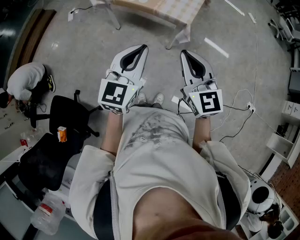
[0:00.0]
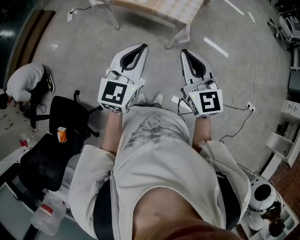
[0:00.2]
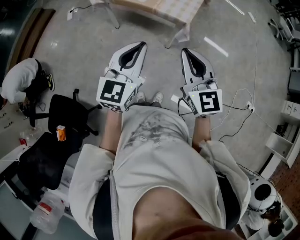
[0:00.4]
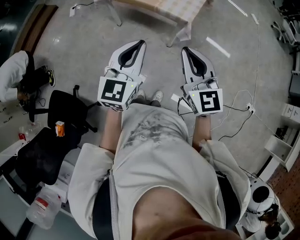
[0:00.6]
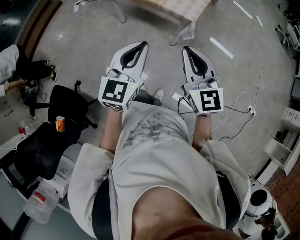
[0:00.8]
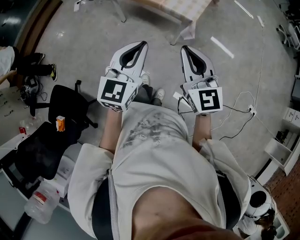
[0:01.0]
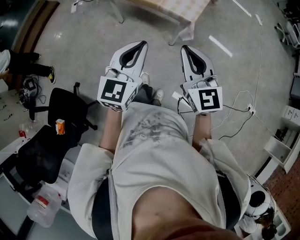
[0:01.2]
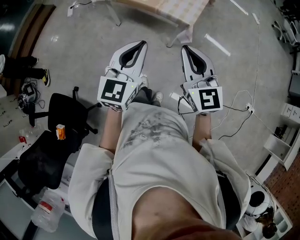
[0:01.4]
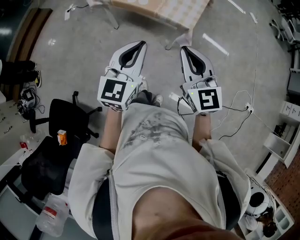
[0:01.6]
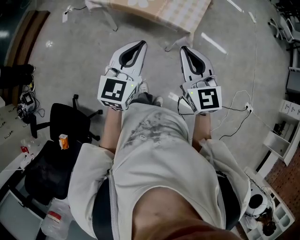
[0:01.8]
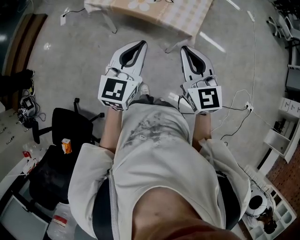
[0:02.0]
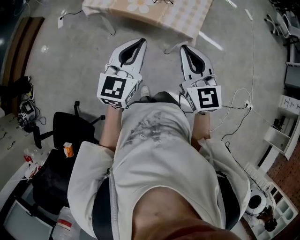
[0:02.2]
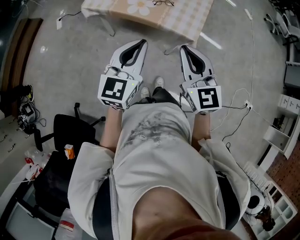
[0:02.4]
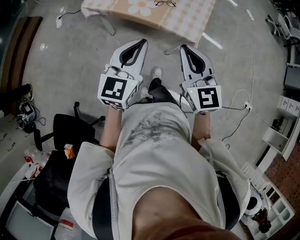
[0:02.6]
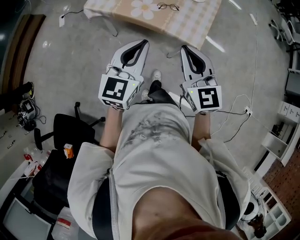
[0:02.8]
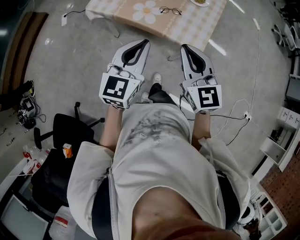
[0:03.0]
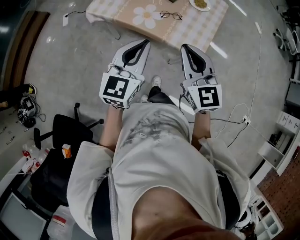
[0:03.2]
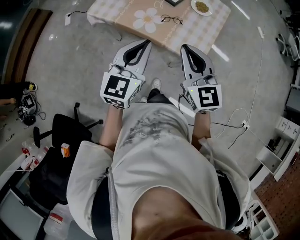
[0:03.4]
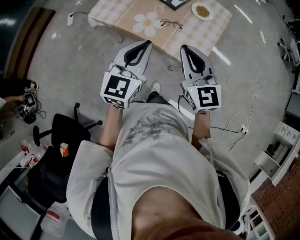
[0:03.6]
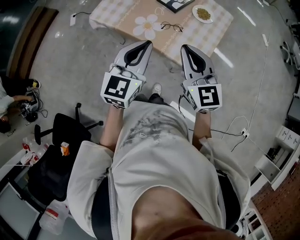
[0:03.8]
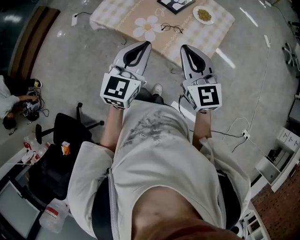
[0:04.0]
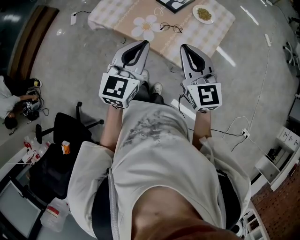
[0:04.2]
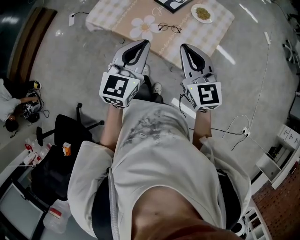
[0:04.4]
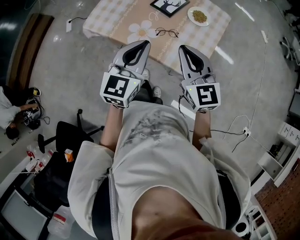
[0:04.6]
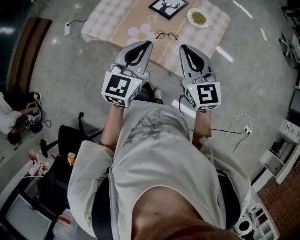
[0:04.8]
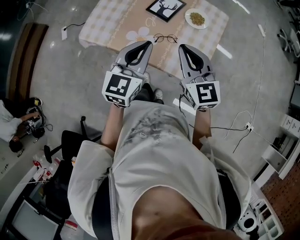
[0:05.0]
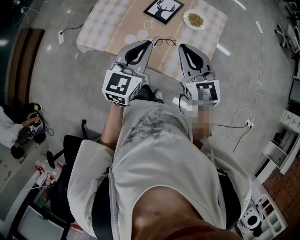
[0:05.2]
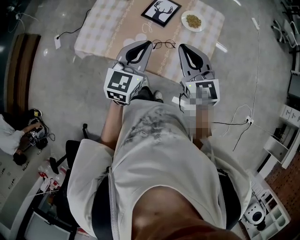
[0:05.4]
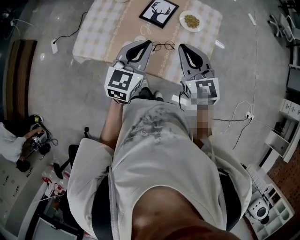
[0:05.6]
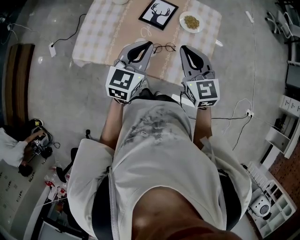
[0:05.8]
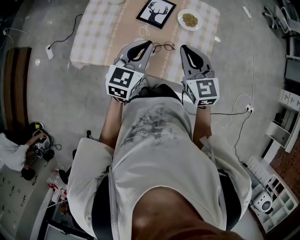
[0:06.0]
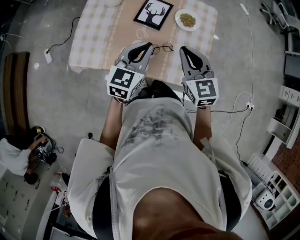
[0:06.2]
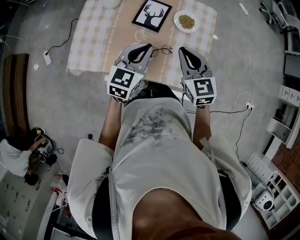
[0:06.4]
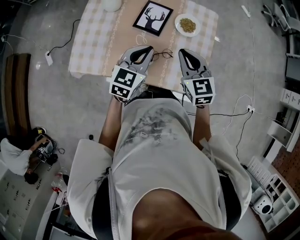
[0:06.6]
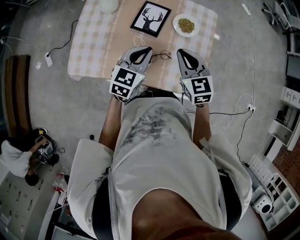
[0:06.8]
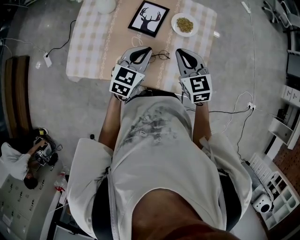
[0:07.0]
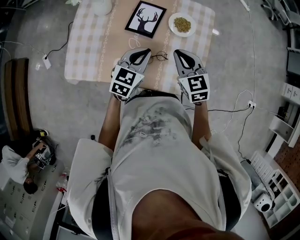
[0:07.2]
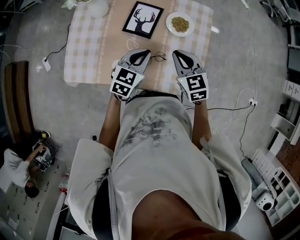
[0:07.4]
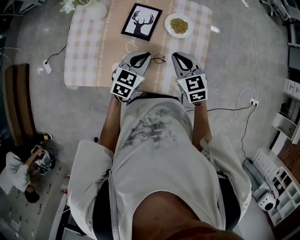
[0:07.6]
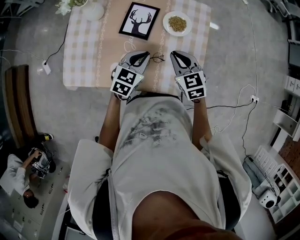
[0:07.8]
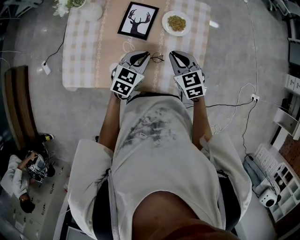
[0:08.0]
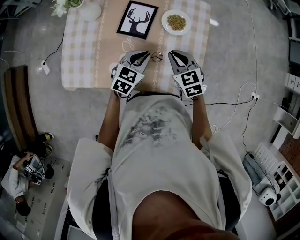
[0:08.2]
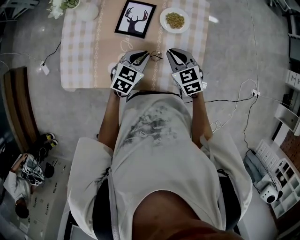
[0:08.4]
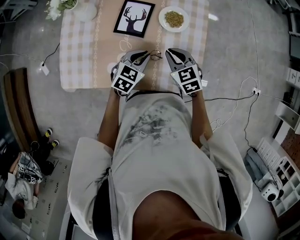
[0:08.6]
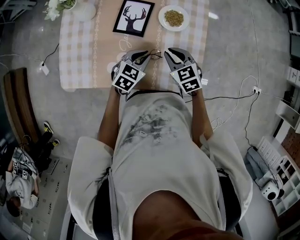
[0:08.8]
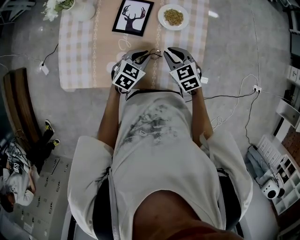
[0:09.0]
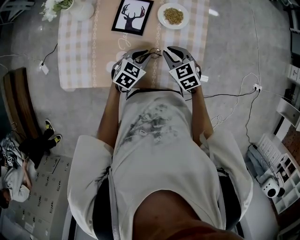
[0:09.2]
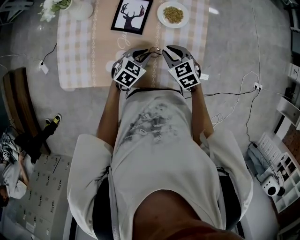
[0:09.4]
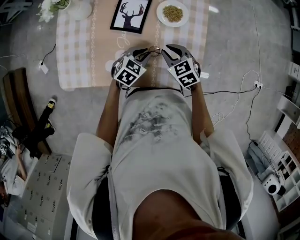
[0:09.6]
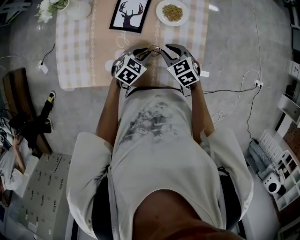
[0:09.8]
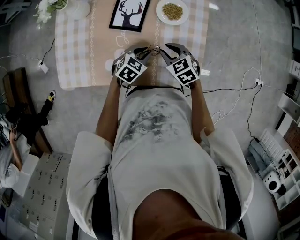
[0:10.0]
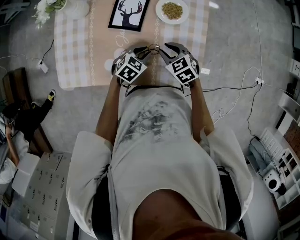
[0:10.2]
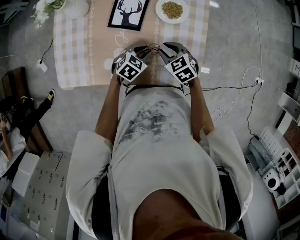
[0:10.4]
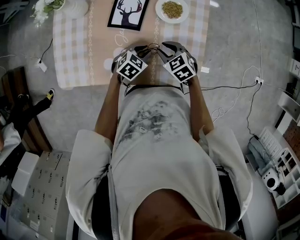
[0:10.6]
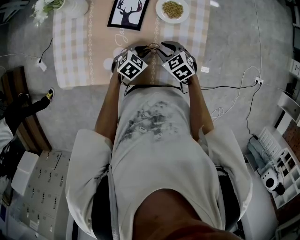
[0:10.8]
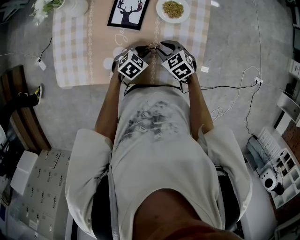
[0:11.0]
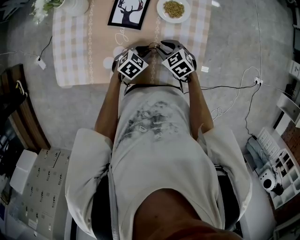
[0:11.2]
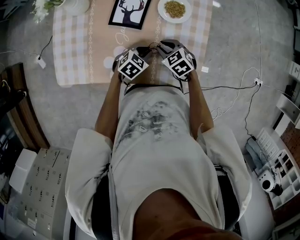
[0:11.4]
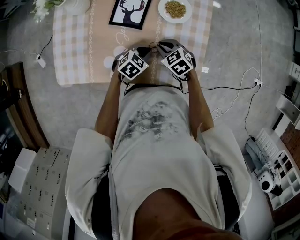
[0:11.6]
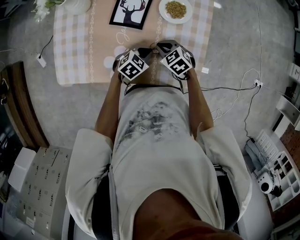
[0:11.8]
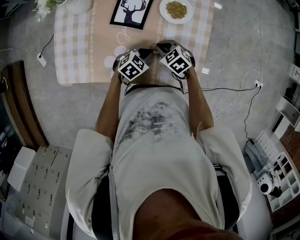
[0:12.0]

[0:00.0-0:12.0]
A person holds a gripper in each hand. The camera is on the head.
0:00.0 to 0:01.6: Both grippers move forward, approximately 5 cm.
0:01.6 to 0:03.0: The grippers both shift forward by roughly 20 cm.
0:03.0 to 0:04.4: The two grippers go roughly 15 cm forward.
0:04.4 to 0:06.0: Both grippers travel together forward, approximately 15 cm. The left gripper changes its angle by about 20 degrees.
0:06.0 to 0:07.6: The right gripper shifts about 15 cm downward and forward; the left gripper moves downward, forward and to the right, about 15 cm, and turns by about 20 degrees.
0:07.6 to 0:09.0: Both grippers travel together downward, roughly 10 cm.
0:09.0 to 0:10.4: The left gripper goes approximately 5 cm downward.
0:10.4 to 0:12.0: The right gripper ends up about 5 cm from where it was, and closes up.

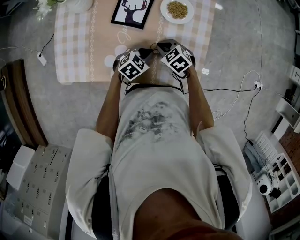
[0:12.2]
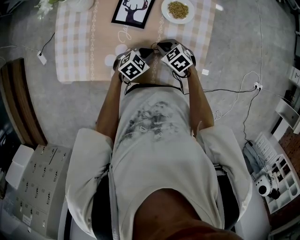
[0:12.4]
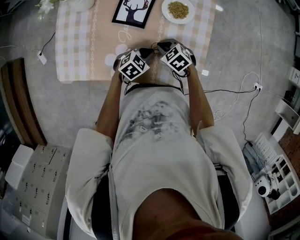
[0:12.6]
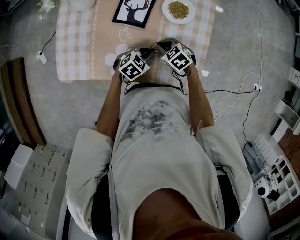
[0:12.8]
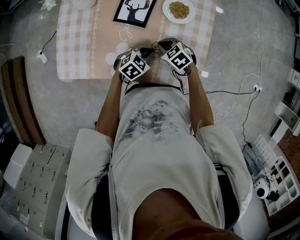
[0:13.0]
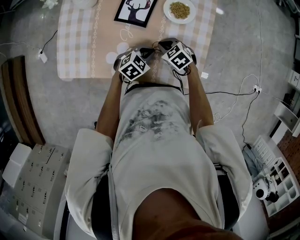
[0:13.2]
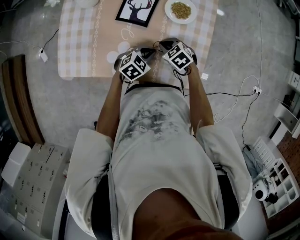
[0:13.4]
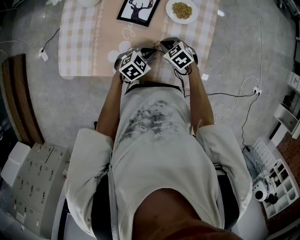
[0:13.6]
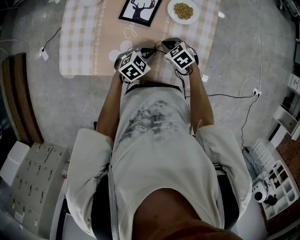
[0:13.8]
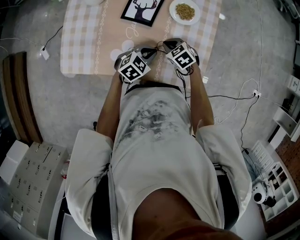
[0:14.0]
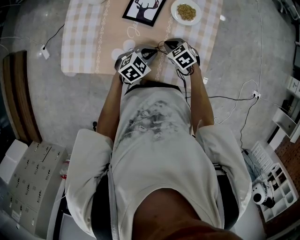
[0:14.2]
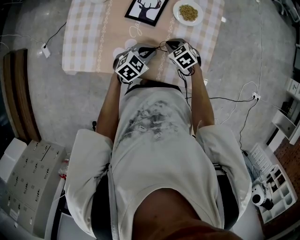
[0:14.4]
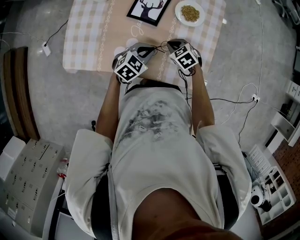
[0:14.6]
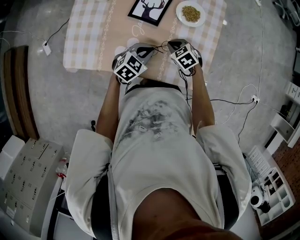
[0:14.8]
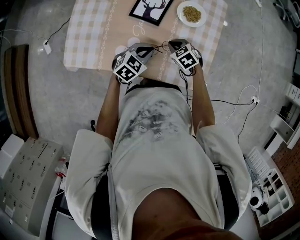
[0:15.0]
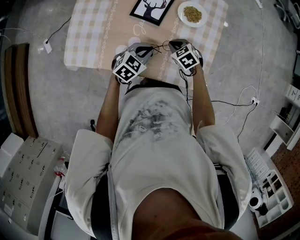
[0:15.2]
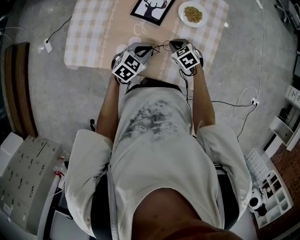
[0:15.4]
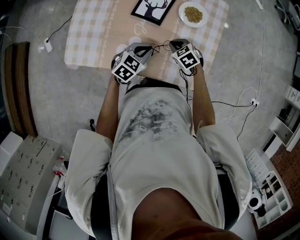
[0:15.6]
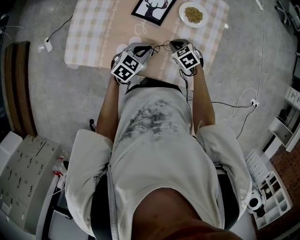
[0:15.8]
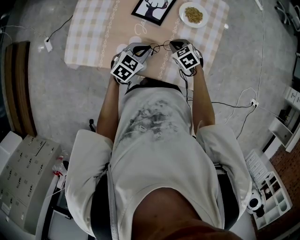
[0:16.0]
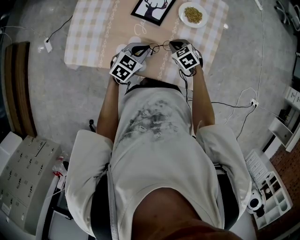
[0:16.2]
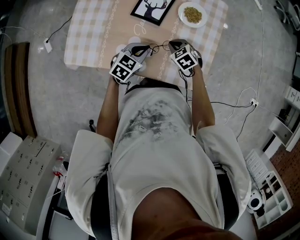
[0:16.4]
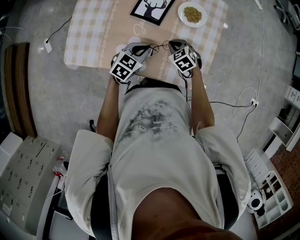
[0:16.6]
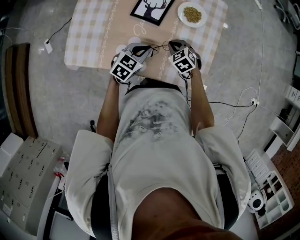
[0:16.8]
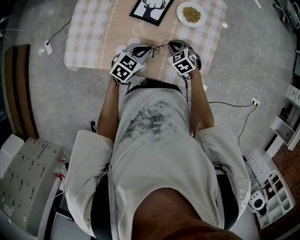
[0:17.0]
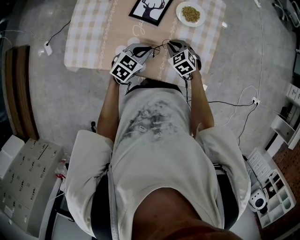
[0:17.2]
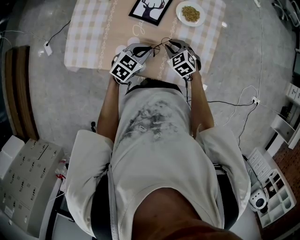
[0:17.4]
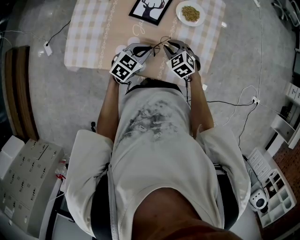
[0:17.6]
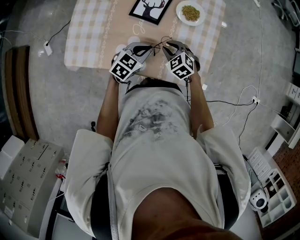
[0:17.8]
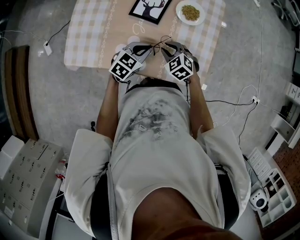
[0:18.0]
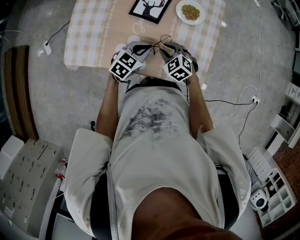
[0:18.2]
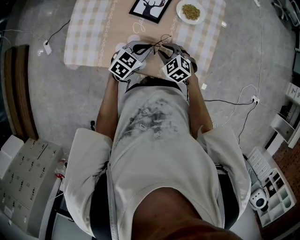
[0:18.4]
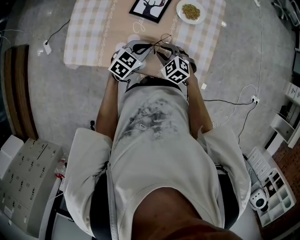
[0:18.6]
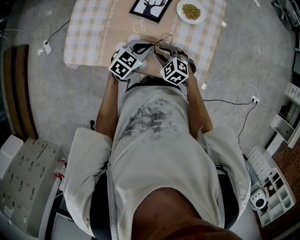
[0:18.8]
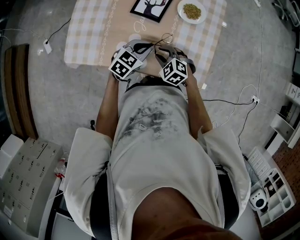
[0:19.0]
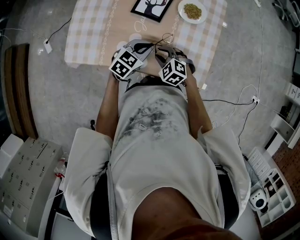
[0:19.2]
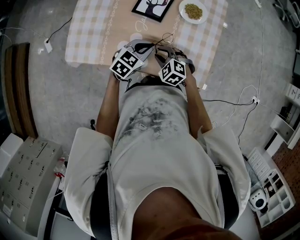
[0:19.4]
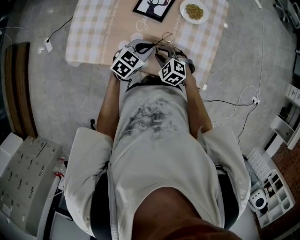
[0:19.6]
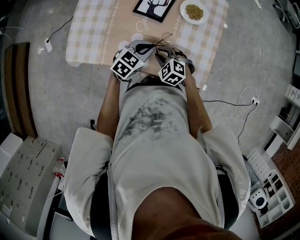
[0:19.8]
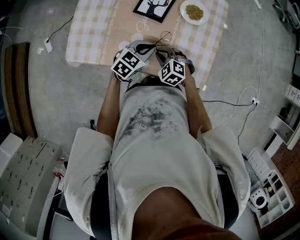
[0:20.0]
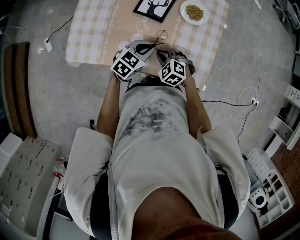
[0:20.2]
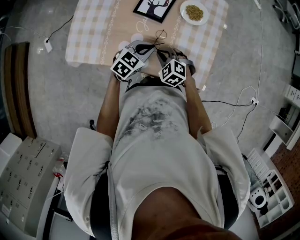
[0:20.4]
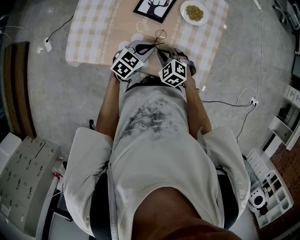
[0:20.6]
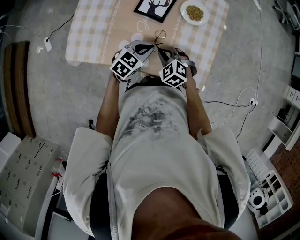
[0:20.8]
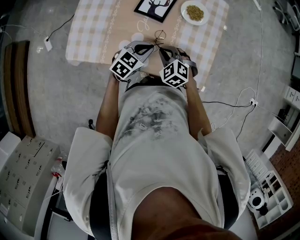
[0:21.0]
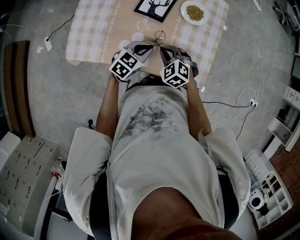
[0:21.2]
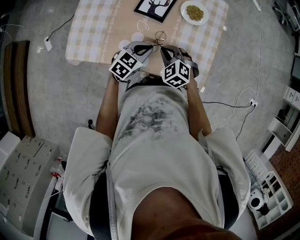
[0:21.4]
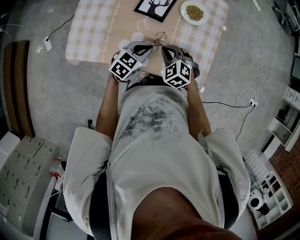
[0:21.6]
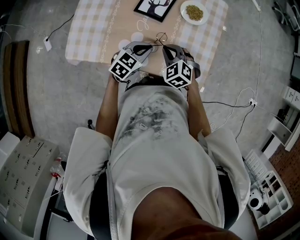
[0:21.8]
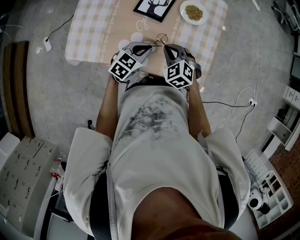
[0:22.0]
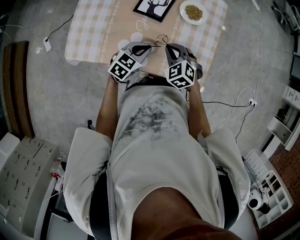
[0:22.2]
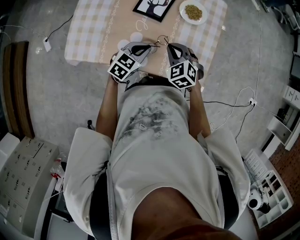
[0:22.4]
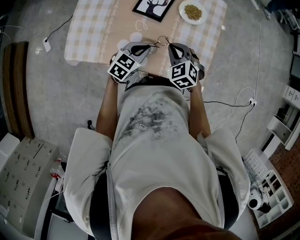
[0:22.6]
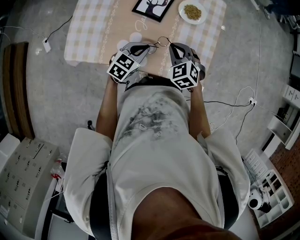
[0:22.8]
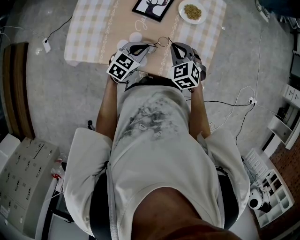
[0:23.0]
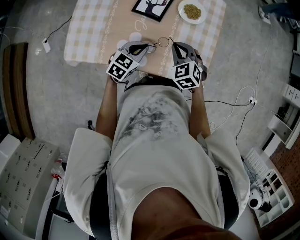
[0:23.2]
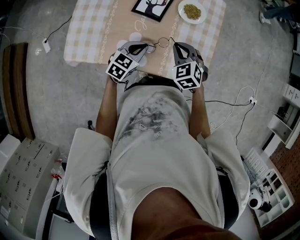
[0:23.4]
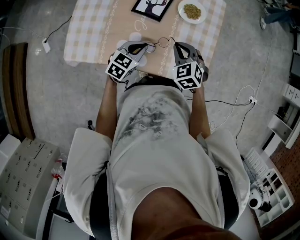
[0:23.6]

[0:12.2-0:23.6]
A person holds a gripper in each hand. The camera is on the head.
0:12.2 to 0:13.6: There are only small adjustments of the grippers.
0:13.6 to 0:15.0: The left gripper ends up approximately 5 cm from where it was.
0:15.0 to 0:17.8: The grippers stay close to where they were, moving slightly.
0:17.8 to 0:19.4: The right gripper moves backward, approximately 5 cm.
0:19.4 to 0:20.8: The right gripper closes its fingers.
0:20.8 to 0:22.2: The right gripper moves roughly 5 cm.
0:22.2 to 0:23.6: The grippers stay close to where they were, moving slightly.

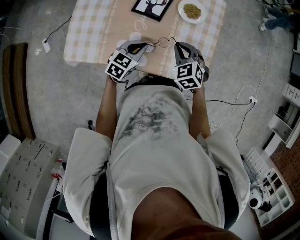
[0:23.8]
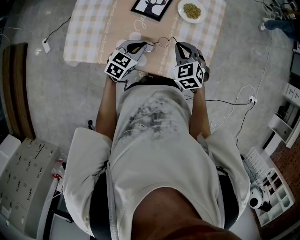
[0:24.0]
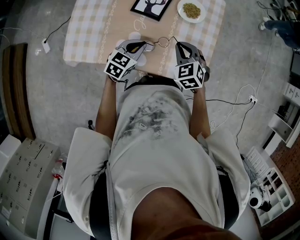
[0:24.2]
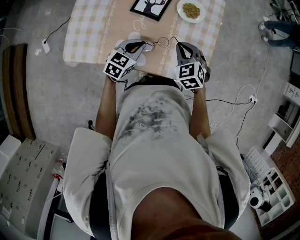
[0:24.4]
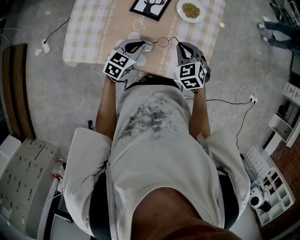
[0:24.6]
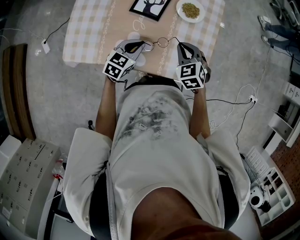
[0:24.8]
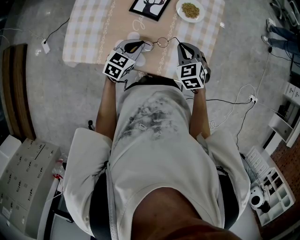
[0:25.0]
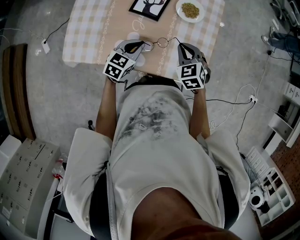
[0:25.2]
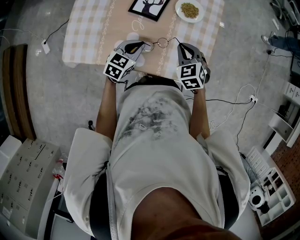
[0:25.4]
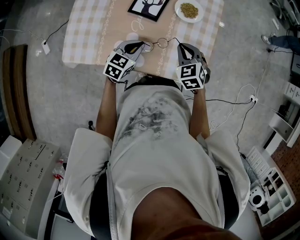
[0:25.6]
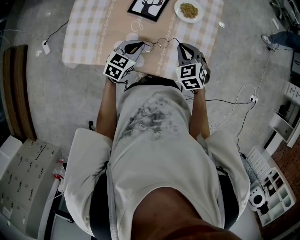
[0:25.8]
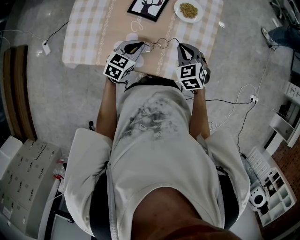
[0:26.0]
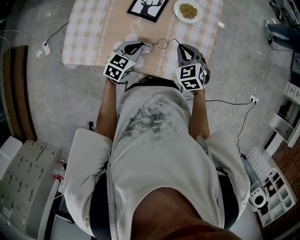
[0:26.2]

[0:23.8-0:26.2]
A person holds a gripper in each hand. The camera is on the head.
0:23.8 to 0:25.0: The grippers make only small movements.
0:25.0 to 0:26.2: Both grippers stay about where they are.
